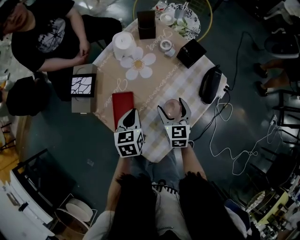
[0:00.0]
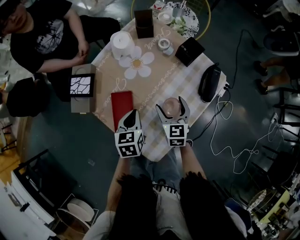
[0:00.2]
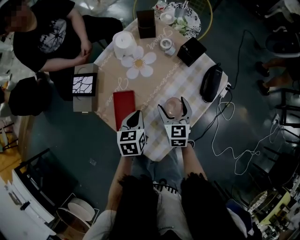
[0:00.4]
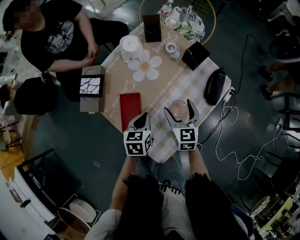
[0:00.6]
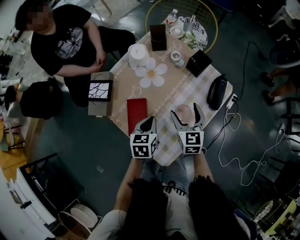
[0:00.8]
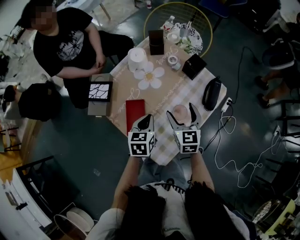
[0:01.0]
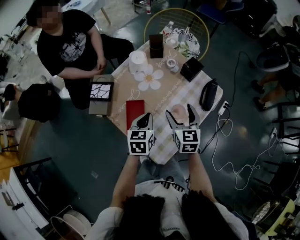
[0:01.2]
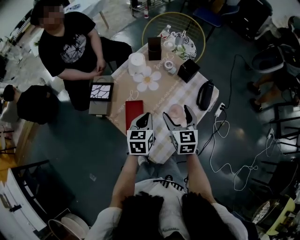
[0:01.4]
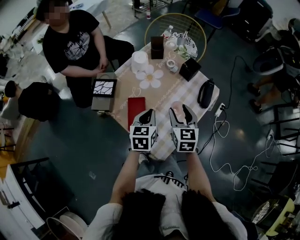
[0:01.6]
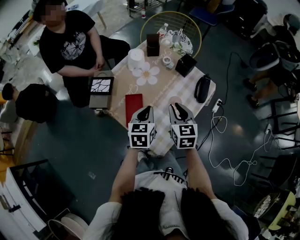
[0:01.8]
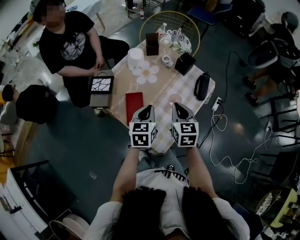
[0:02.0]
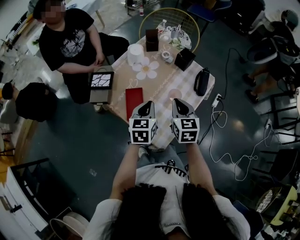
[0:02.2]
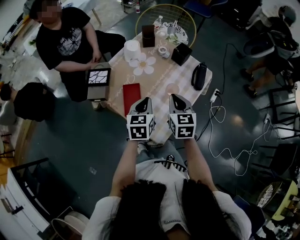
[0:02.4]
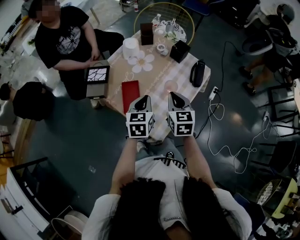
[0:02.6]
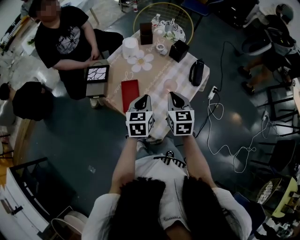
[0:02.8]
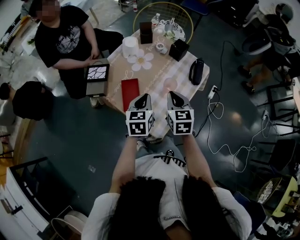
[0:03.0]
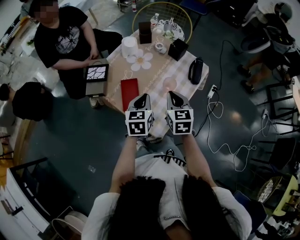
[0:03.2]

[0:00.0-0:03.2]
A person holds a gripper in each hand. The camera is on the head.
0:00.0 to 0:01.6: Both grippers move upward, roughly 10 cm.
0:01.6 to 0:03.2: The left gripper changes place by roughly 5 cm. The right gripper shifts approximately 5 cm backward, and closes up.

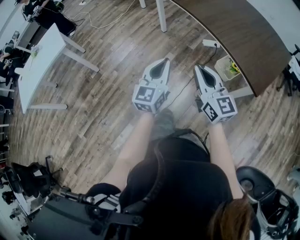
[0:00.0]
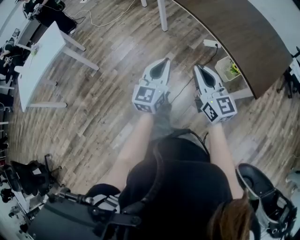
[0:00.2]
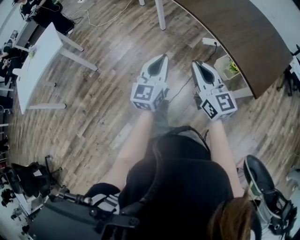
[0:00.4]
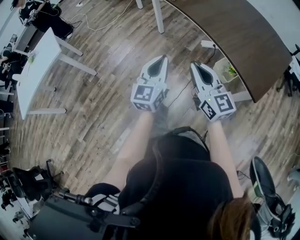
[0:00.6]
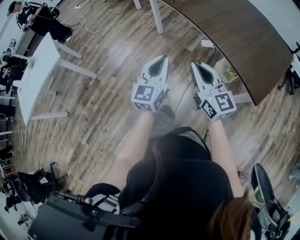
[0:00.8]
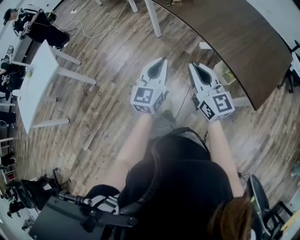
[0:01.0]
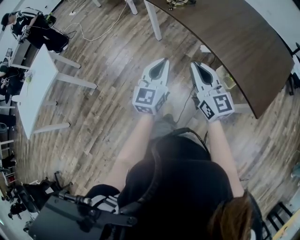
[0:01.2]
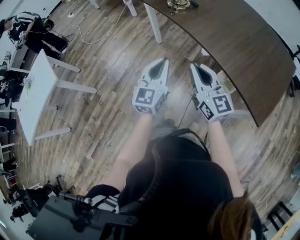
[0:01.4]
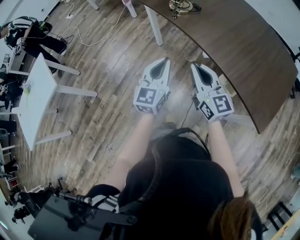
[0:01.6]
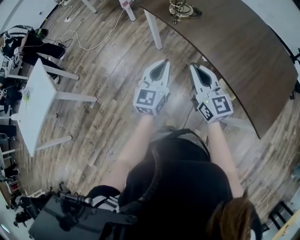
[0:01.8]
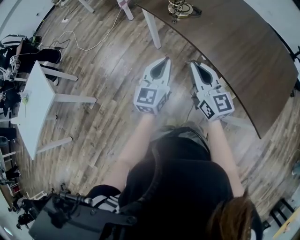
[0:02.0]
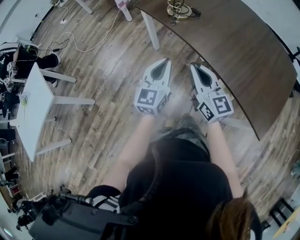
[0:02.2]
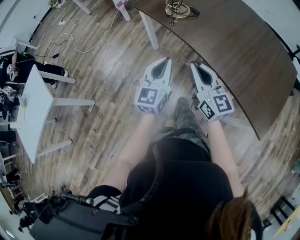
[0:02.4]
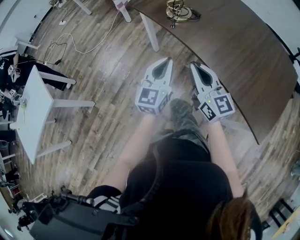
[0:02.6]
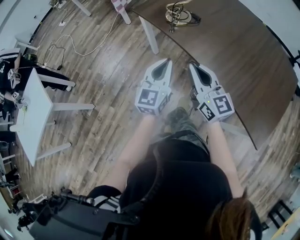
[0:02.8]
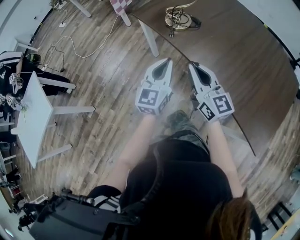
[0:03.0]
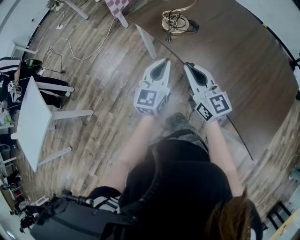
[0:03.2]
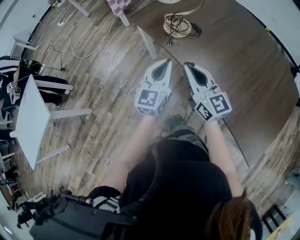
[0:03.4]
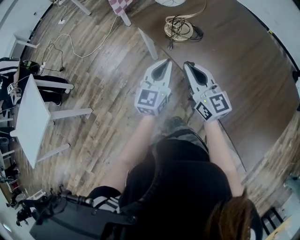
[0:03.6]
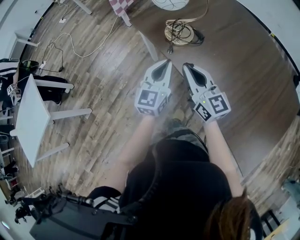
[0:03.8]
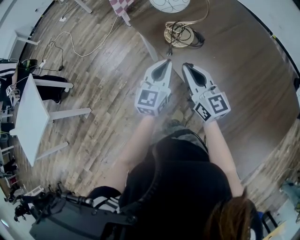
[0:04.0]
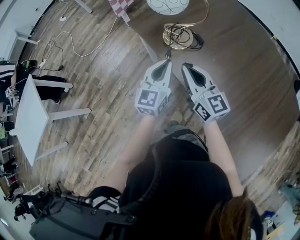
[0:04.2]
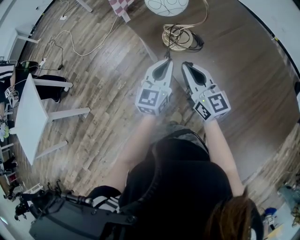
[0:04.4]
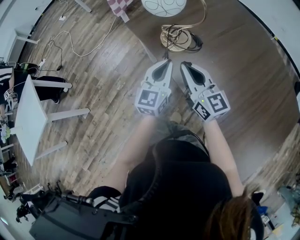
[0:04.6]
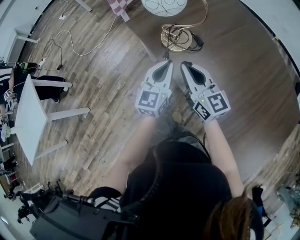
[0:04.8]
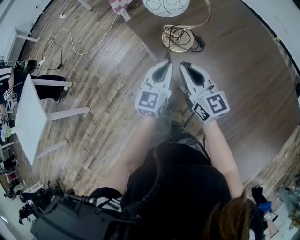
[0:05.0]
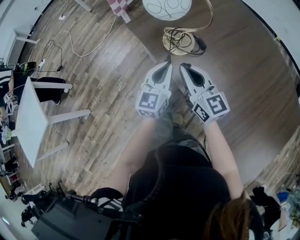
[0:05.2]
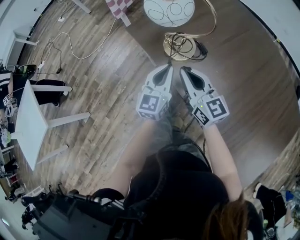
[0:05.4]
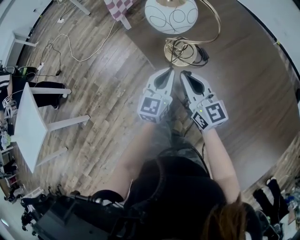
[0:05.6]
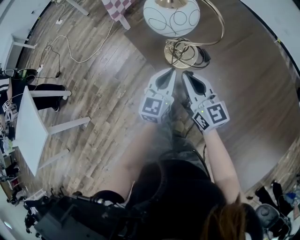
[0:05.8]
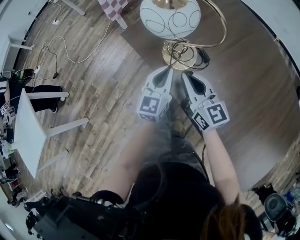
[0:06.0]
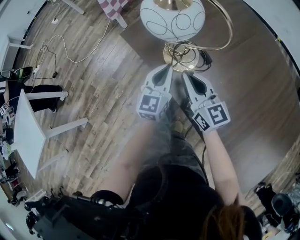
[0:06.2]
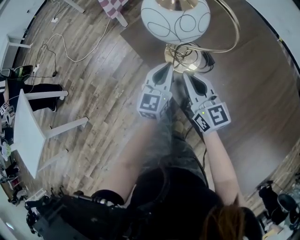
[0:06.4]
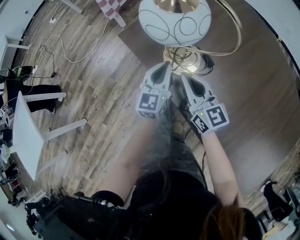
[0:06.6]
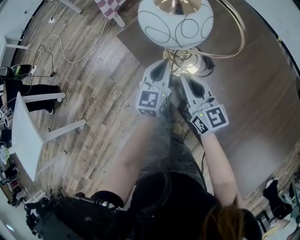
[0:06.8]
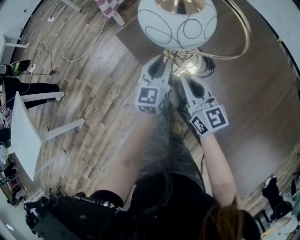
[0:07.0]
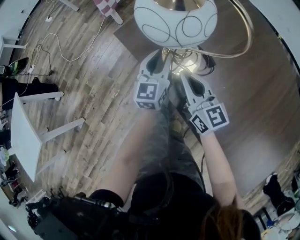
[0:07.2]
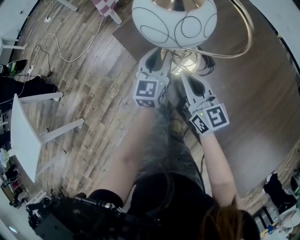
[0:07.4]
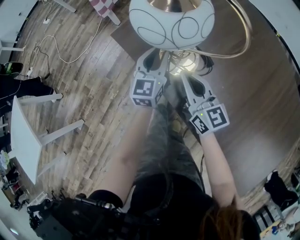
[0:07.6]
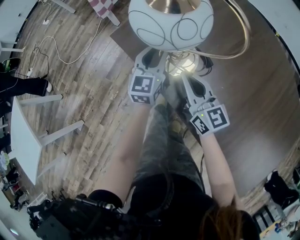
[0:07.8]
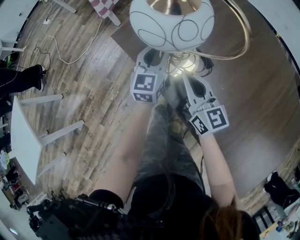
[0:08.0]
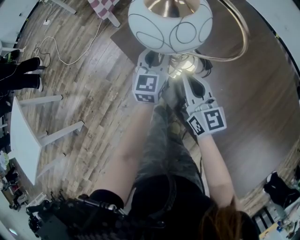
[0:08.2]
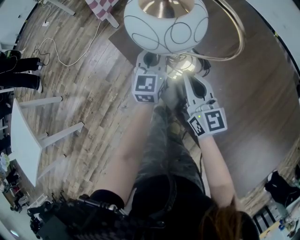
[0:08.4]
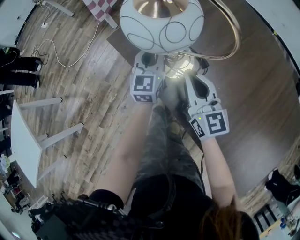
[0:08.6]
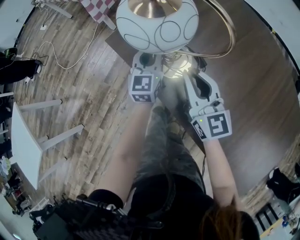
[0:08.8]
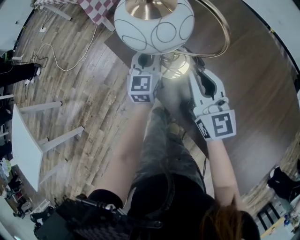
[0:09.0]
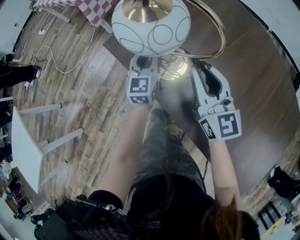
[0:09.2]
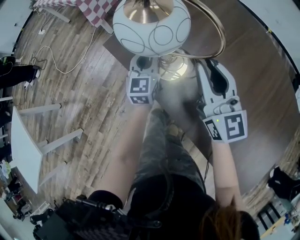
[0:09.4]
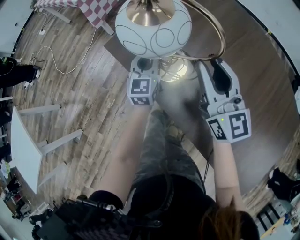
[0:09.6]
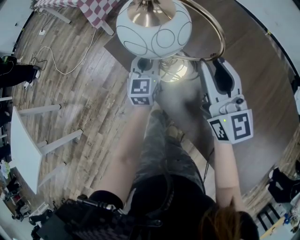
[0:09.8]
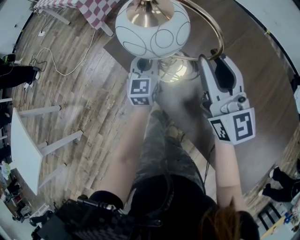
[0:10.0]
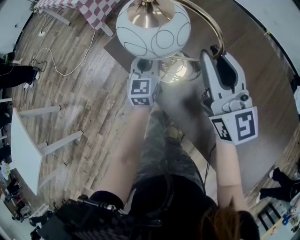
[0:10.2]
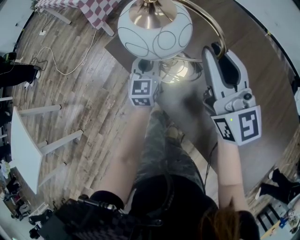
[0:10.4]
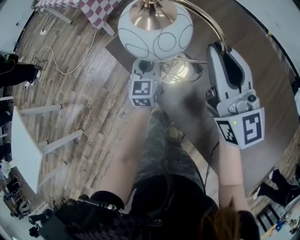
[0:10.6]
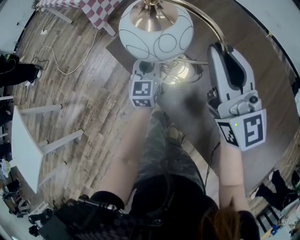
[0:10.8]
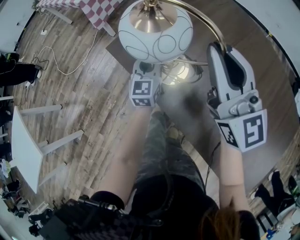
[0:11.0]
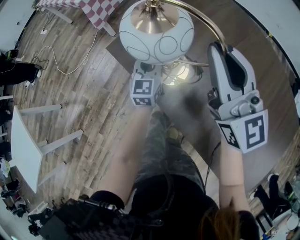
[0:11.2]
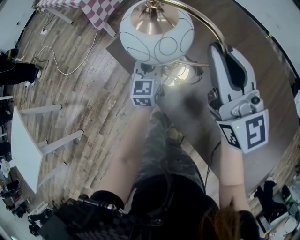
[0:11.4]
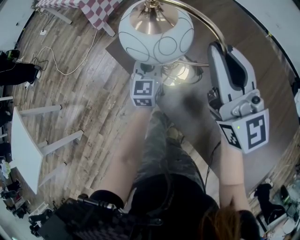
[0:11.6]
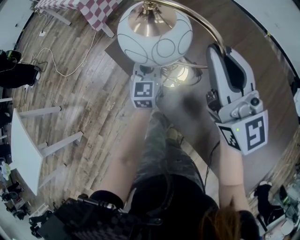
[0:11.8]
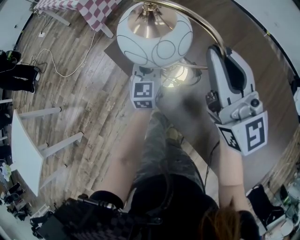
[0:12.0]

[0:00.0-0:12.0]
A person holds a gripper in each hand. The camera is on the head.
0:00.0 to 0:01.6: Both grippers travel together forward, about 25 cm.
0:01.6 to 0:03.0: Both grippers travel together forward, about 15 cm.
0:03.0 to 0:04.4: Both grippers move forward, about 15 cm.
0:04.4 to 0:06.0: The right gripper travels forward by approximately 10 cm. The left gripper is displaced forward and downward by roughly 10 cm.
0:06.0 to 0:07.6: The left gripper moves forward, about 10 cm, and opens its fingers.
0:07.6 to 0:09.0: The right gripper goes about 5 cm upward.
0:09.0 to 0:10.4: The right gripper moves upward, approximately 10 cm.
0:10.4 to 0:12.0: The grippers stay close to where they were, moving slightly.

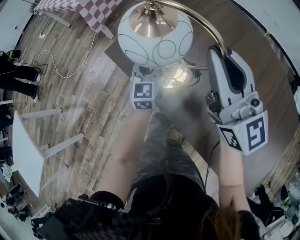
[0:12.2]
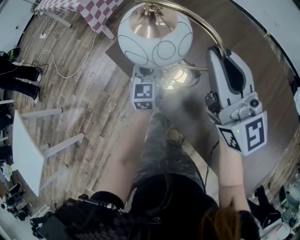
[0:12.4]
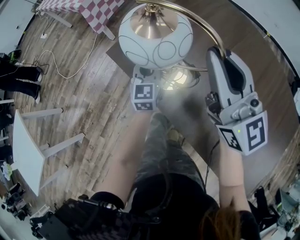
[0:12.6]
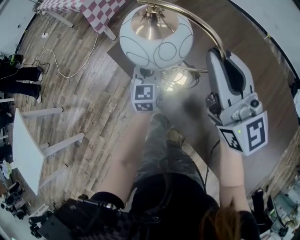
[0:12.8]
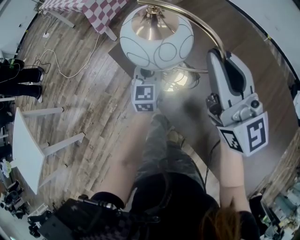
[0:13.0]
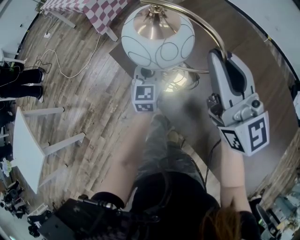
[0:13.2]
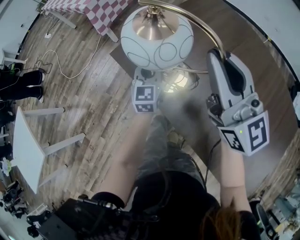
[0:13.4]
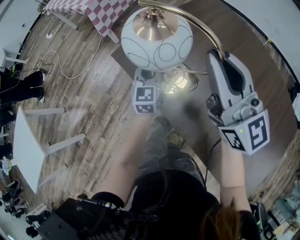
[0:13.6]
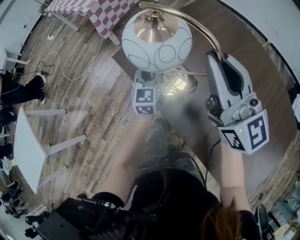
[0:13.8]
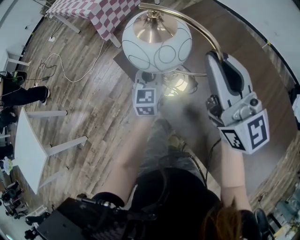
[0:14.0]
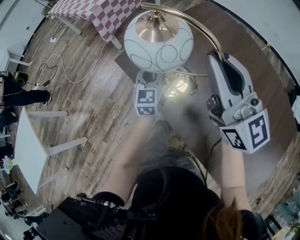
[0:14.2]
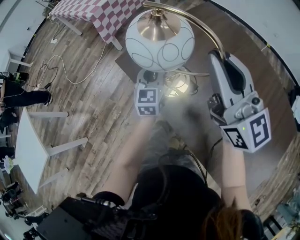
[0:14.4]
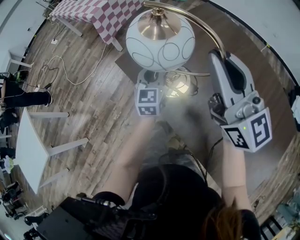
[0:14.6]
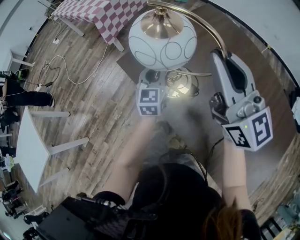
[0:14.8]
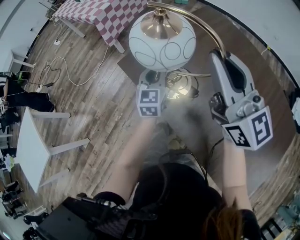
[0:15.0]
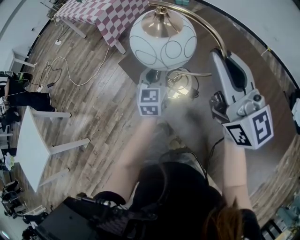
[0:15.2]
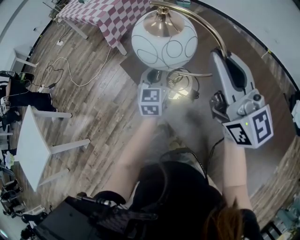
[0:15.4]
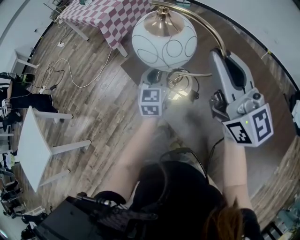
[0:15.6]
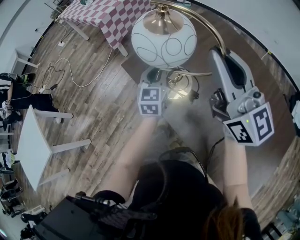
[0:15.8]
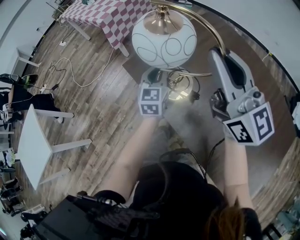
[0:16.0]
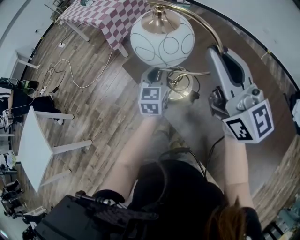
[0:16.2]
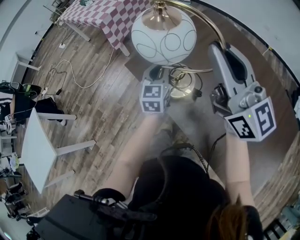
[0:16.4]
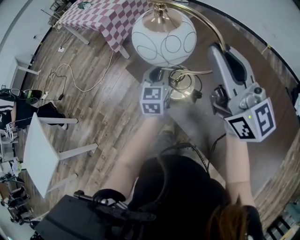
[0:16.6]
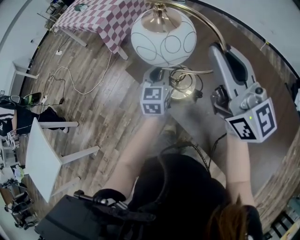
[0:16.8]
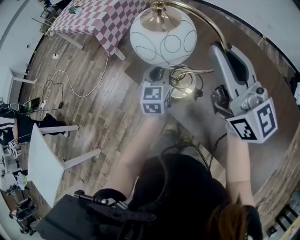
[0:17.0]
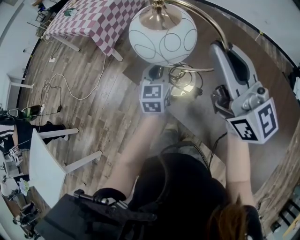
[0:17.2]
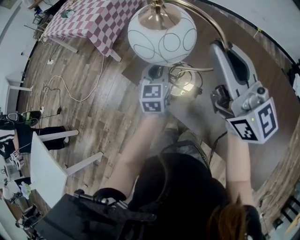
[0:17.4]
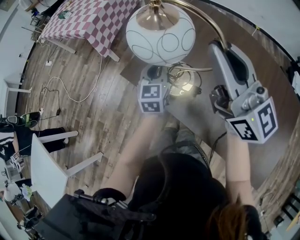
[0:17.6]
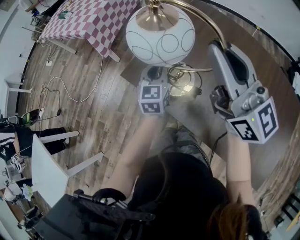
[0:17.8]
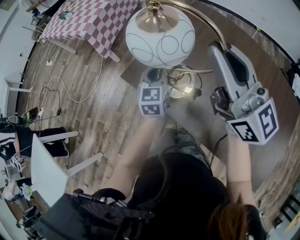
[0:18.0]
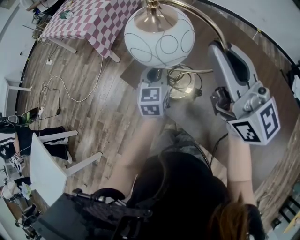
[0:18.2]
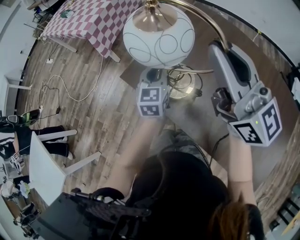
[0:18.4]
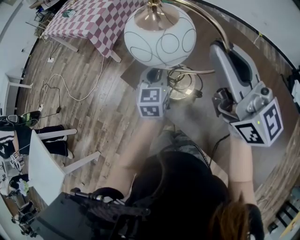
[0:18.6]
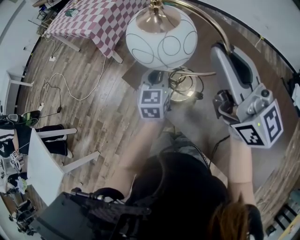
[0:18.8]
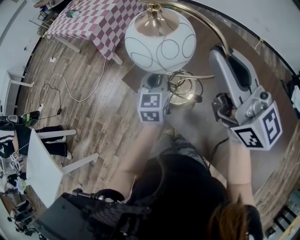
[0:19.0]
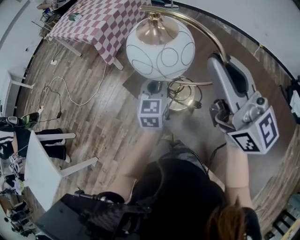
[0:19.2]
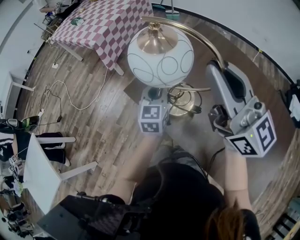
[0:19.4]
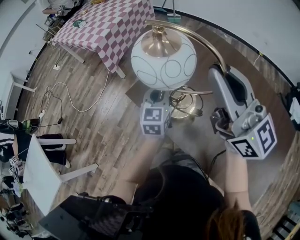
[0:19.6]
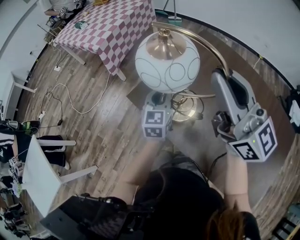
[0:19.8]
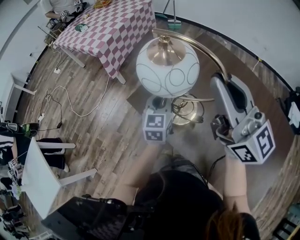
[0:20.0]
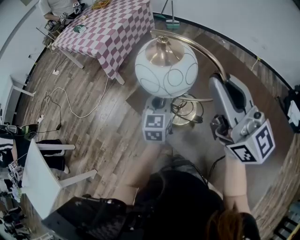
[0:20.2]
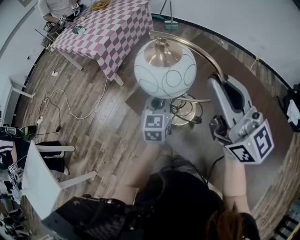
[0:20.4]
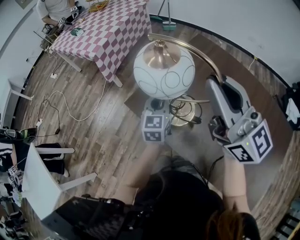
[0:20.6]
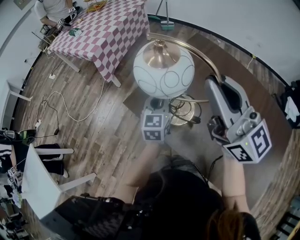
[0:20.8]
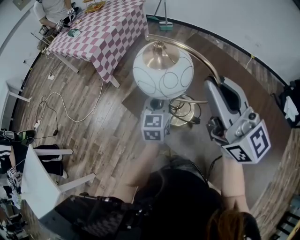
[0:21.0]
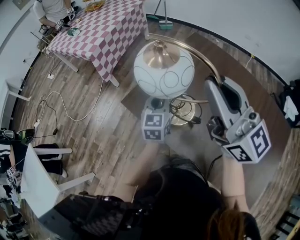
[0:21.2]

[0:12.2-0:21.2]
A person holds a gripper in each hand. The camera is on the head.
0:12.2 to 0:13.8: There are only small adjustments of the grippers.
0:13.8 to 0:15.2: Both grippers move upward, some 5 cm.
0:15.2 to 0:18.2: There are only small adjustments of the grippers.
0:18.2 to 0:21.2: The grippers move only a little.
